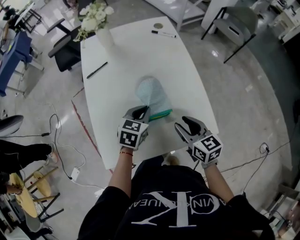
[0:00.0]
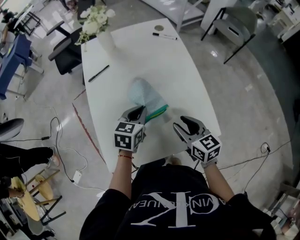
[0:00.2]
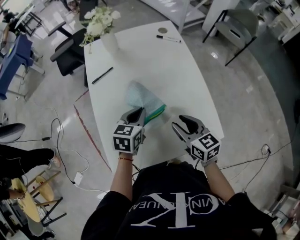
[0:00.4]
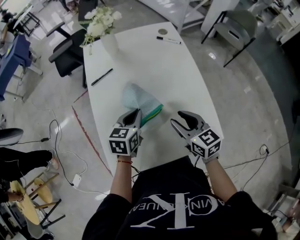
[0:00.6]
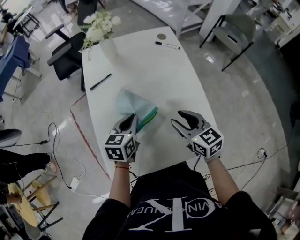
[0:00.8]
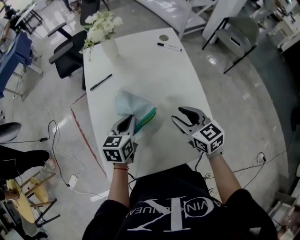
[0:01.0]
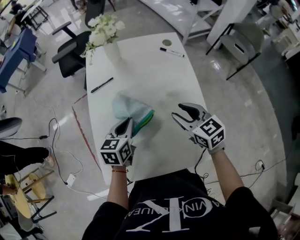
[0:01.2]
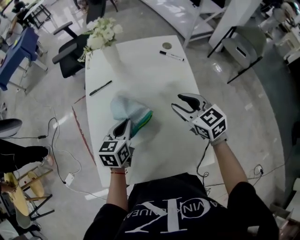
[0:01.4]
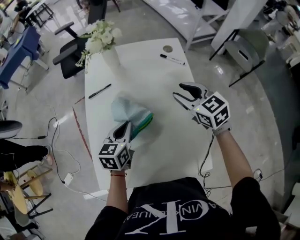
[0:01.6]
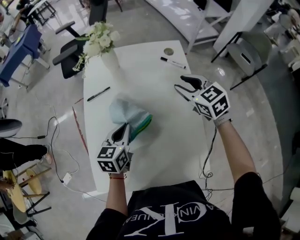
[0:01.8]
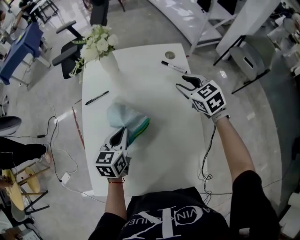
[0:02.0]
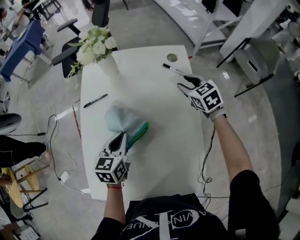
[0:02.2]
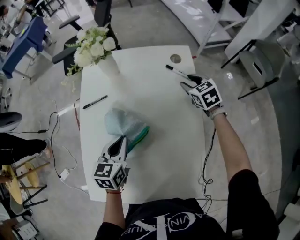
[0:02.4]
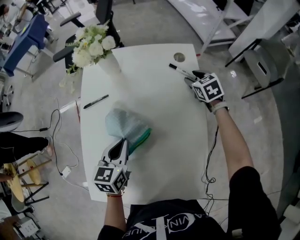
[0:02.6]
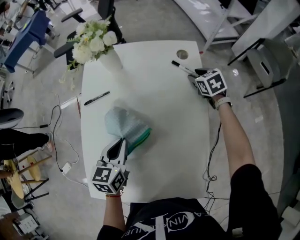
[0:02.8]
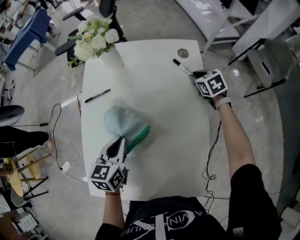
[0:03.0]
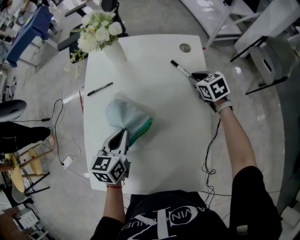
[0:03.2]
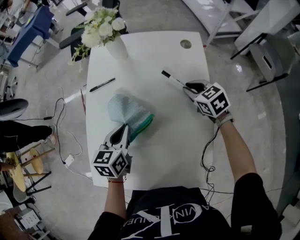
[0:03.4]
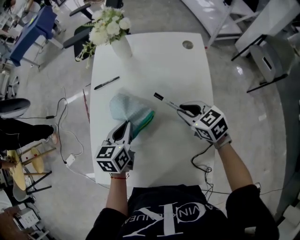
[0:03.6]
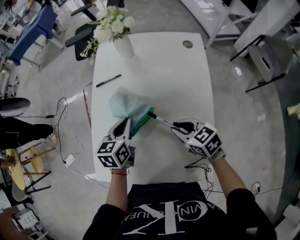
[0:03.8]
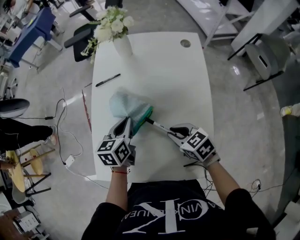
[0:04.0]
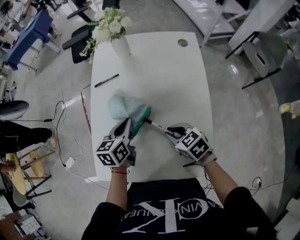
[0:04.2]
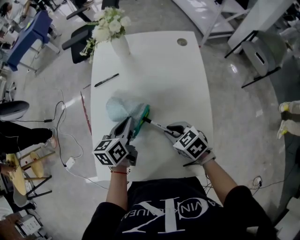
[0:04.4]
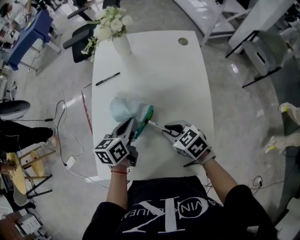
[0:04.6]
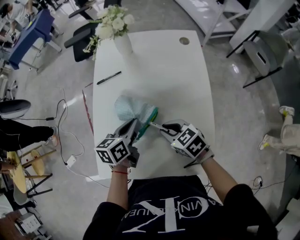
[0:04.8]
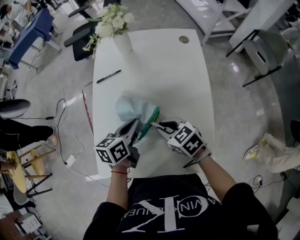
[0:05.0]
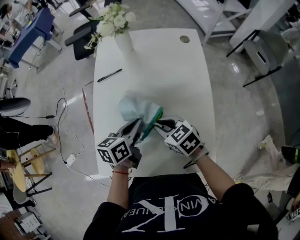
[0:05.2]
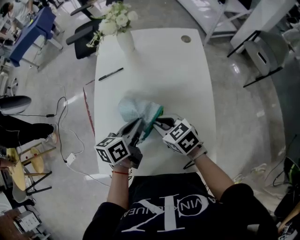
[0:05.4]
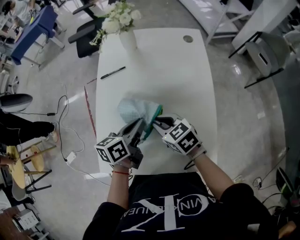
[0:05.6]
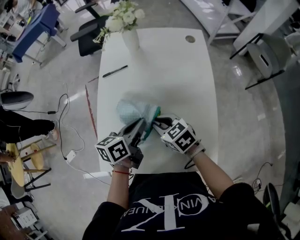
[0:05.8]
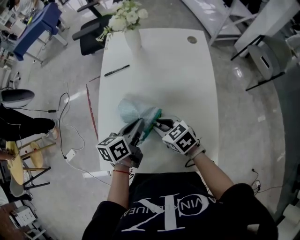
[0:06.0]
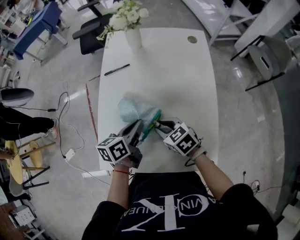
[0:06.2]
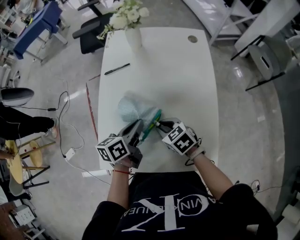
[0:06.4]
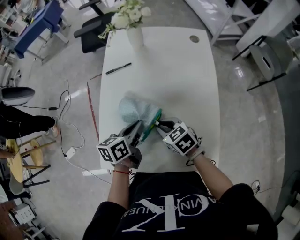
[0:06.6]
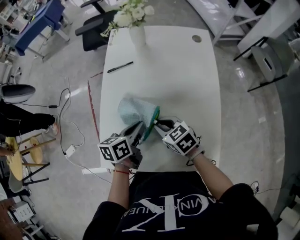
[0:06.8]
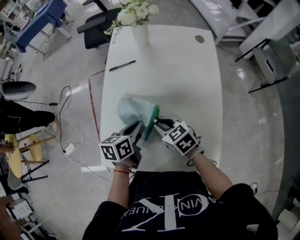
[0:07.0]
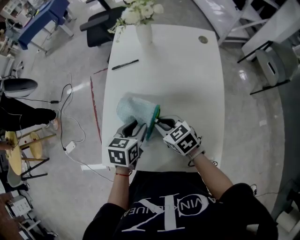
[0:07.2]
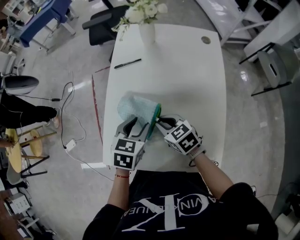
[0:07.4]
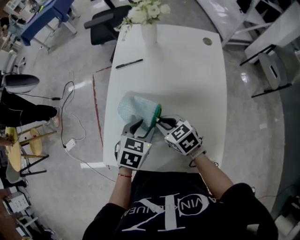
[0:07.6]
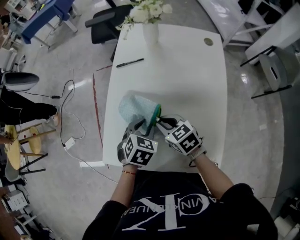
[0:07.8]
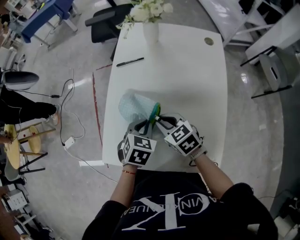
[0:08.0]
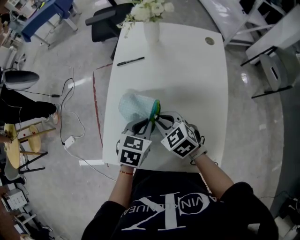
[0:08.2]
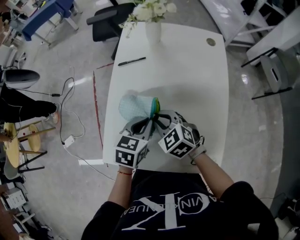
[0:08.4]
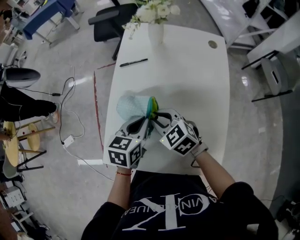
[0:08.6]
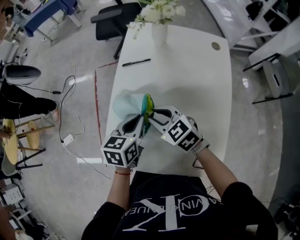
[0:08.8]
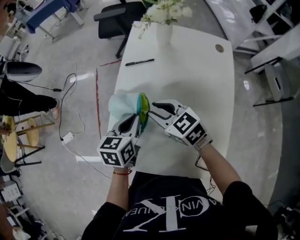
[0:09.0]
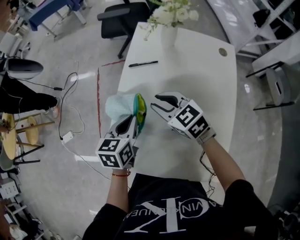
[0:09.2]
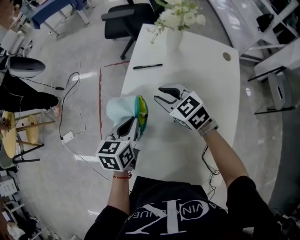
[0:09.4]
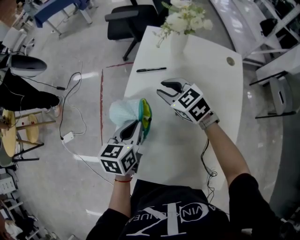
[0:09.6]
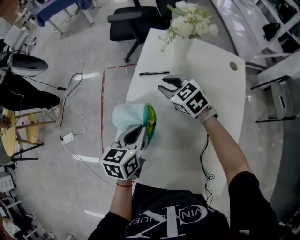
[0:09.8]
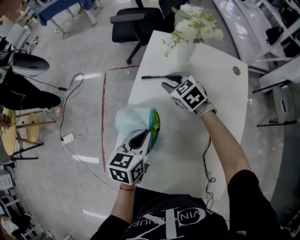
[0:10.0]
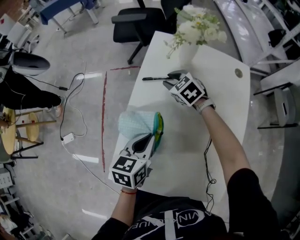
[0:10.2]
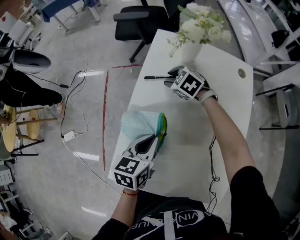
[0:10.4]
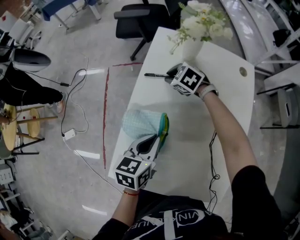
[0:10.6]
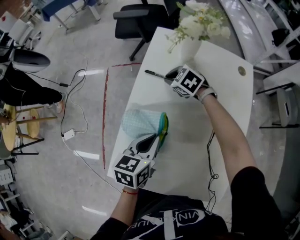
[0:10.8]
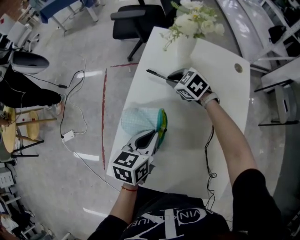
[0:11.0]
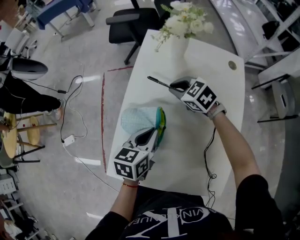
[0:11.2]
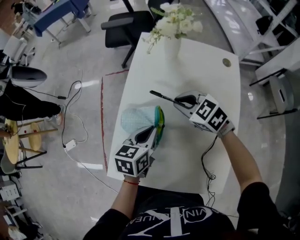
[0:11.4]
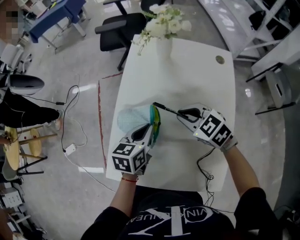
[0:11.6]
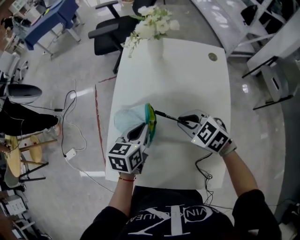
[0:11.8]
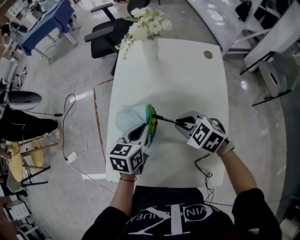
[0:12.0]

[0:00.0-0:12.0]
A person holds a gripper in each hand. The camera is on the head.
0:00.0 to 0:01.6: The left gripper is displaced forward and to the left by roughly 10 cm, and swivels approximately 30 degrees. Meanwhile the right gripper goes approximately 25 cm forward, and changes its angle by roughly 30 degrees.
0:01.6 to 0:03.0: The right gripper moves forward, downward and to the right, about 30 cm, turns by about 20 degrees, and closes up.
0:03.0 to 0:04.4: The right gripper travels backward and to the left by approximately 40 cm.
0:04.4 to 0:06.0: The right gripper is displaced to the left by approximately 10 cm, while the left gripper changes place by roughly 5 cm.
0:06.0 to 0:07.6: The left gripper swivels roughly 50 degrees, and opens its fingers.
0:07.6 to 0:09.0: The left gripper moves to the left and forward, roughly 10 cm, swivels some 30 degrees, and closes, while the right gripper moves upward and forward, approximately 10 cm.
0:09.0 to 0:10.4: The right gripper moves forward and downward, roughly 25 cm, and swivels approximately 30 degrees.
0:10.4 to 0:12.0: The left gripper moves to the right, some 5 cm. The right gripper is displaced backward by approximately 25 cm, and closes its fingers.

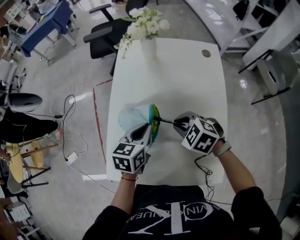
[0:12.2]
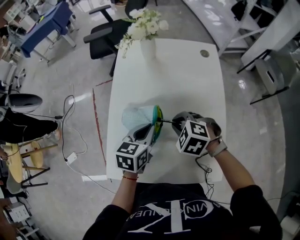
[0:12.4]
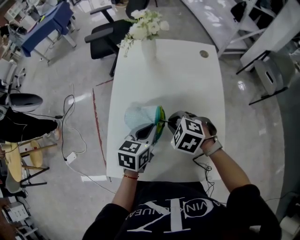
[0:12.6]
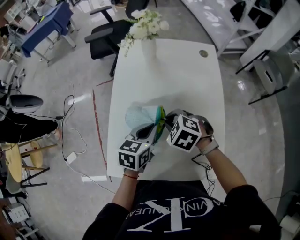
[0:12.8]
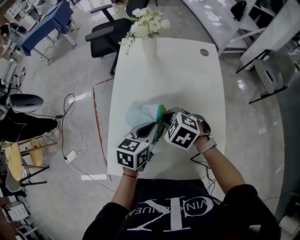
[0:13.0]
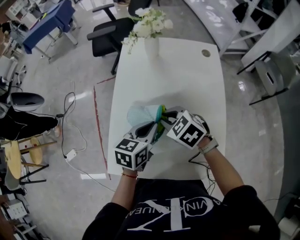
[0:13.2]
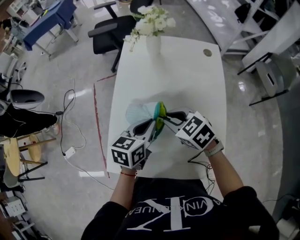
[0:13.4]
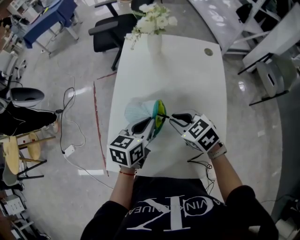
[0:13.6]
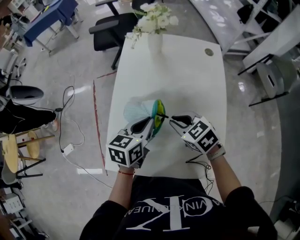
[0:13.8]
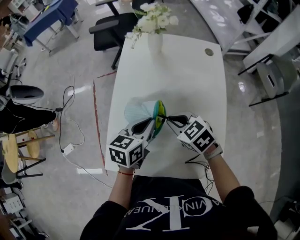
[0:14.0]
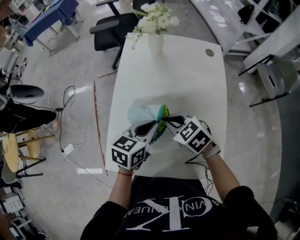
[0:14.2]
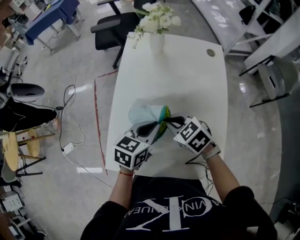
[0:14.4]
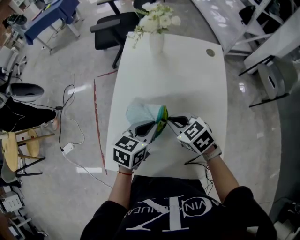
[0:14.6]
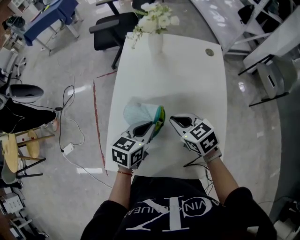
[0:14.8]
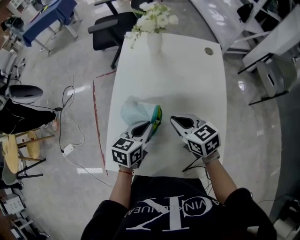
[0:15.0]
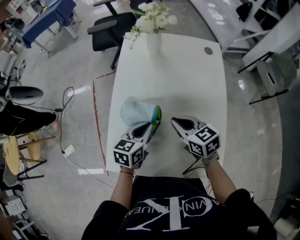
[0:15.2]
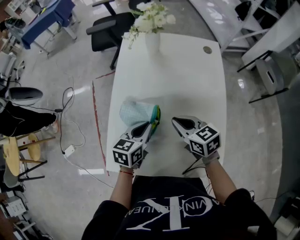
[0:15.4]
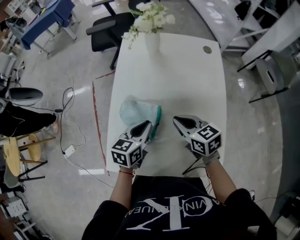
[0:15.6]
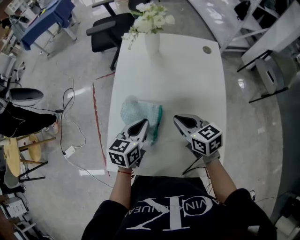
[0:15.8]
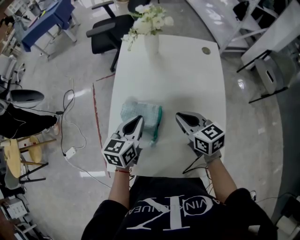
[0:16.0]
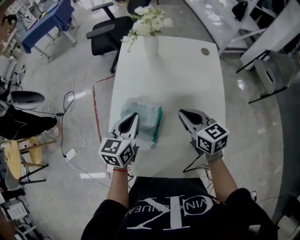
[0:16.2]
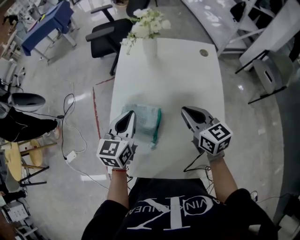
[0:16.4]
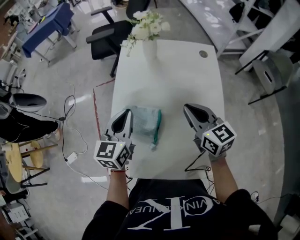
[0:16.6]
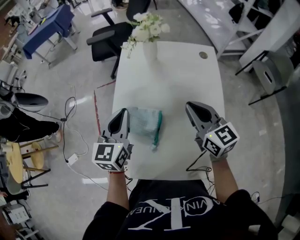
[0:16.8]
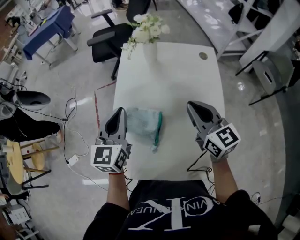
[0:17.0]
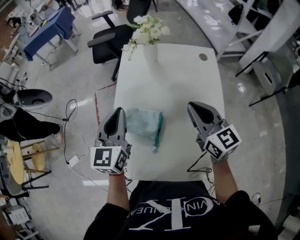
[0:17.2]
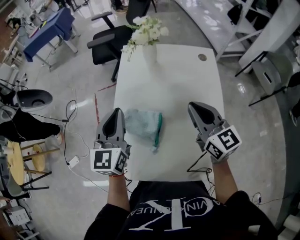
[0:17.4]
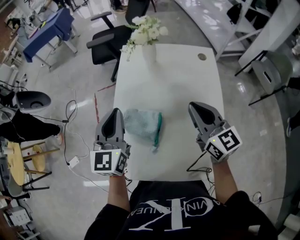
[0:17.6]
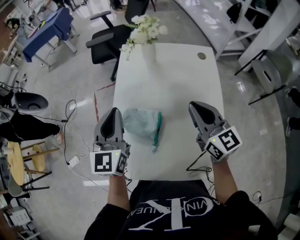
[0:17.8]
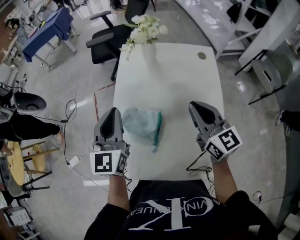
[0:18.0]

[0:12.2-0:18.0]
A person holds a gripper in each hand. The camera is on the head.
0:12.2 to 0:13.6: The right gripper changes its angle by approximately 20 degrees.
0:13.6 to 0:15.0: The grippers move only a little.
0:15.0 to 0:16.6: The right gripper moves upward and to the right, roughly 10 cm, and swivels some 20 degrees, while the left gripper moves upward, to the left and forward, some 15 cm, and turns by some 30 degrees.
0:16.6 to 0:18.0: The left gripper travels upward by roughly 10 cm; the right gripper travels upward by approximately 5 cm.

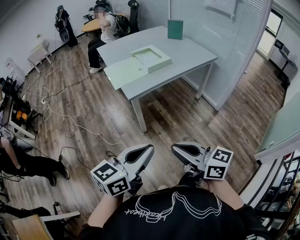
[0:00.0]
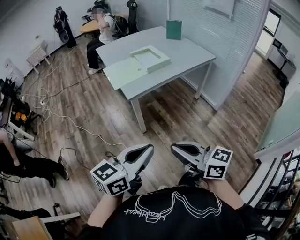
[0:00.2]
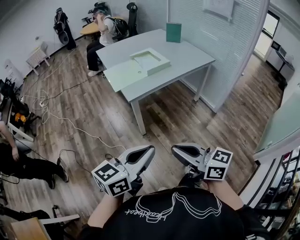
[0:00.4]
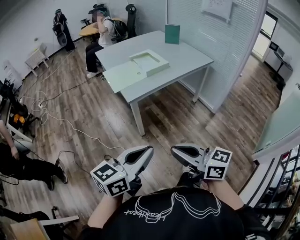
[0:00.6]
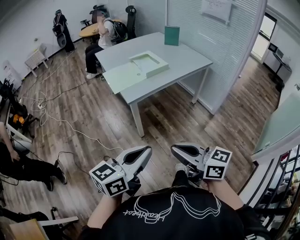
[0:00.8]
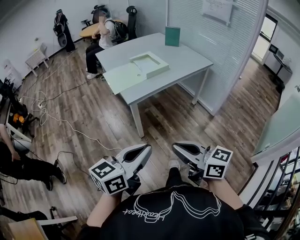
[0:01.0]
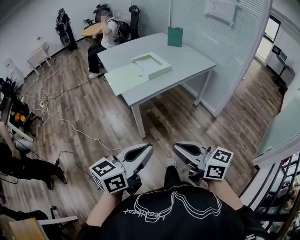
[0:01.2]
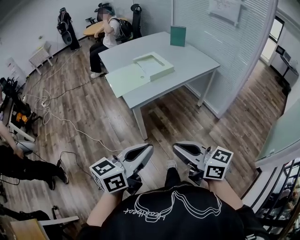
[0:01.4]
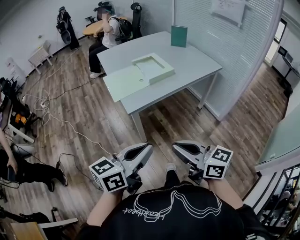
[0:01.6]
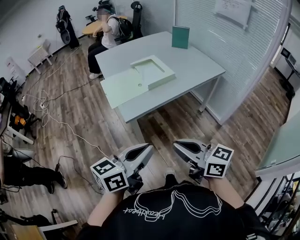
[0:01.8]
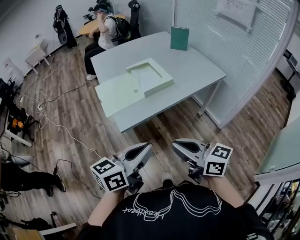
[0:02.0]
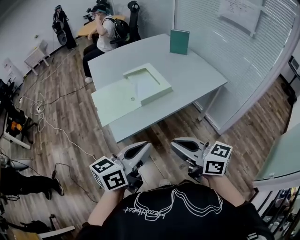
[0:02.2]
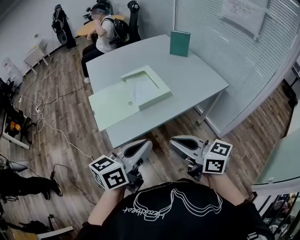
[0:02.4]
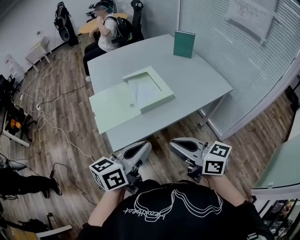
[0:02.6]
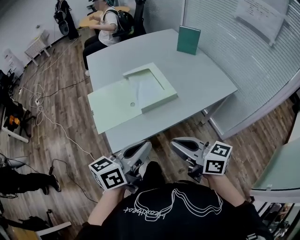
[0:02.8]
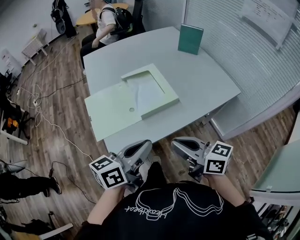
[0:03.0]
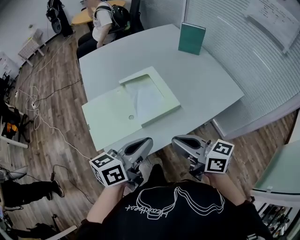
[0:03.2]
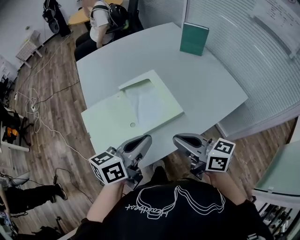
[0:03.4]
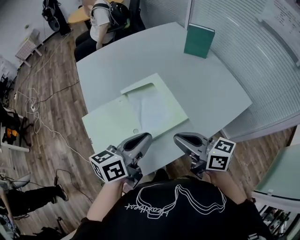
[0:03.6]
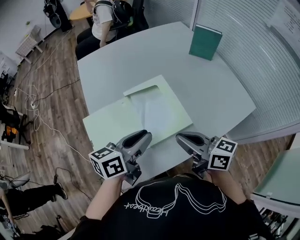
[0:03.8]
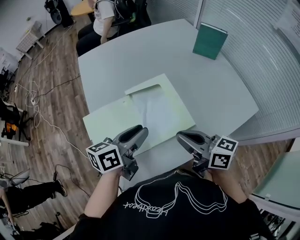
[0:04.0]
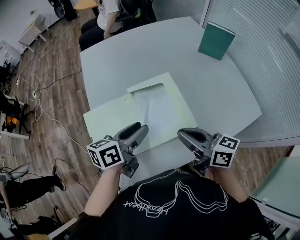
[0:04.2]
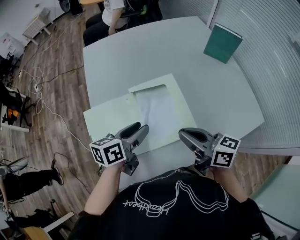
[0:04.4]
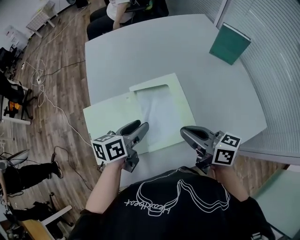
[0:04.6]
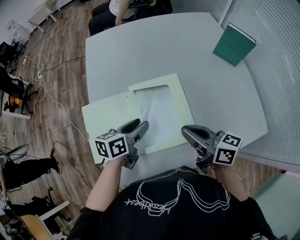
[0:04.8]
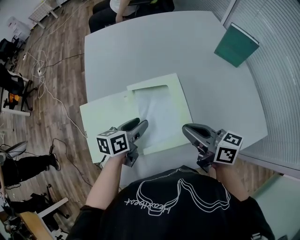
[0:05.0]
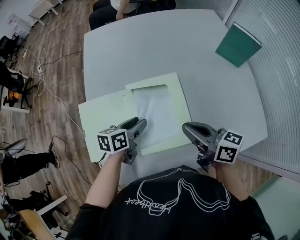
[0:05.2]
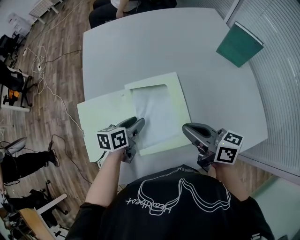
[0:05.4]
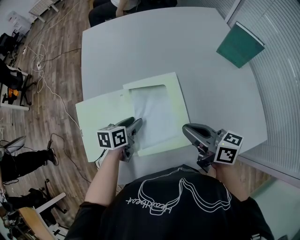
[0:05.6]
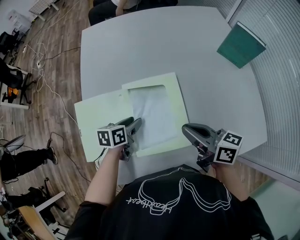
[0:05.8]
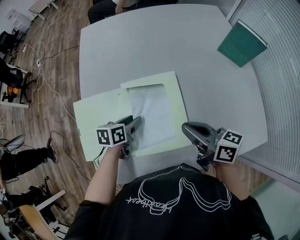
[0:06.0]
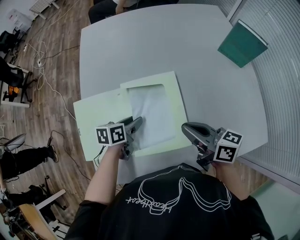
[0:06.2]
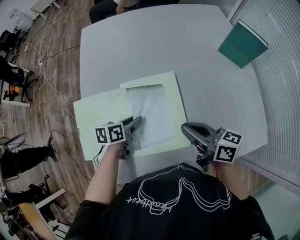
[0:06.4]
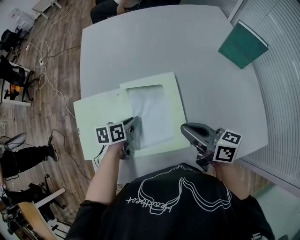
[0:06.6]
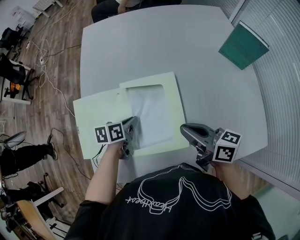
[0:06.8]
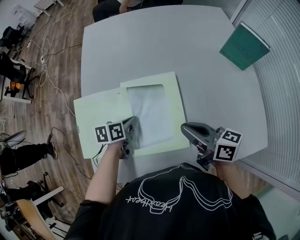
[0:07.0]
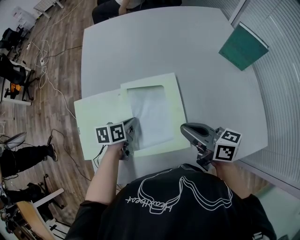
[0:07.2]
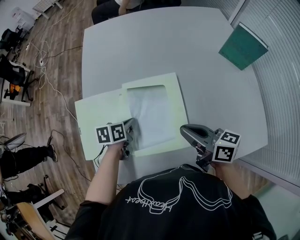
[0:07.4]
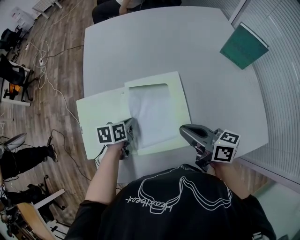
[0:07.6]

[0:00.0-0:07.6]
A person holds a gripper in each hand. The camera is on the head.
0:00.0 to 0:01.6: The grippers both shift forward by roughly 10 cm.
0:01.6 to 0:03.0: The two grippers go about 40 cm forward.
0:03.0 to 0:04.6: Both grippers travel together forward, some 30 cm. The left gripper swivels about 20 degrees, and opens.
0:04.6 to 0:06.0: The right gripper is displaced forward by about 5 cm, while the left gripper heads downward, covering some 15 cm.
0:06.0 to 0:07.6: The left gripper moves roughly 5 cm, and closes up.
